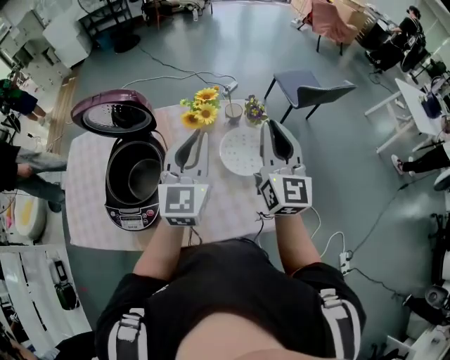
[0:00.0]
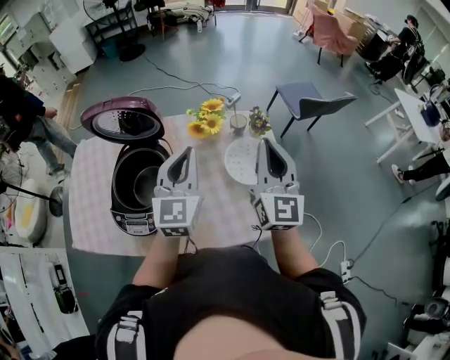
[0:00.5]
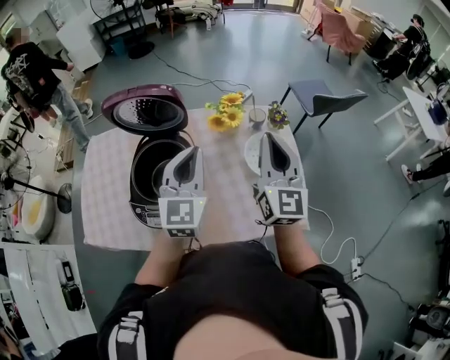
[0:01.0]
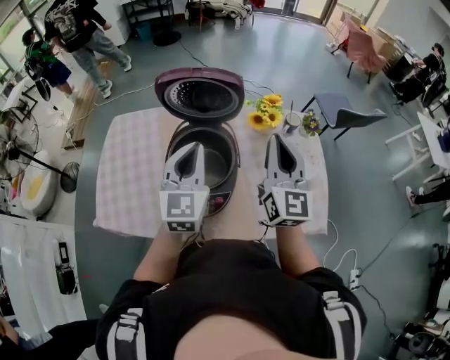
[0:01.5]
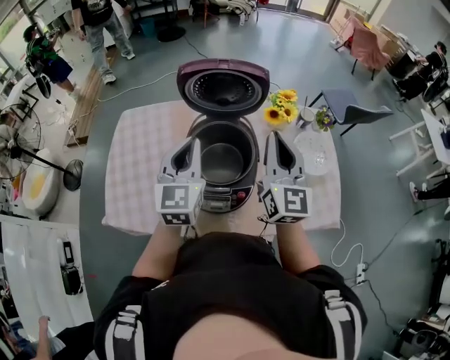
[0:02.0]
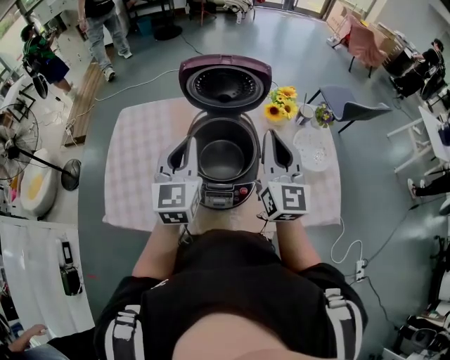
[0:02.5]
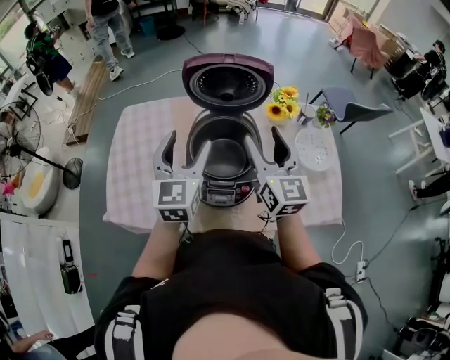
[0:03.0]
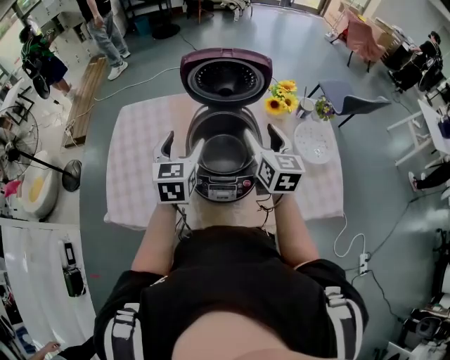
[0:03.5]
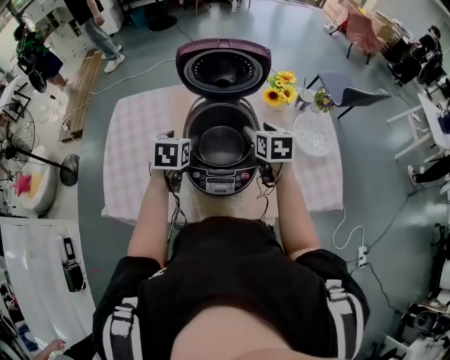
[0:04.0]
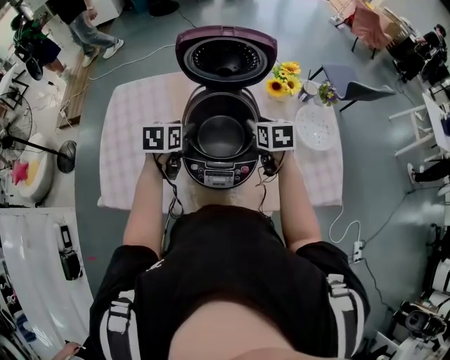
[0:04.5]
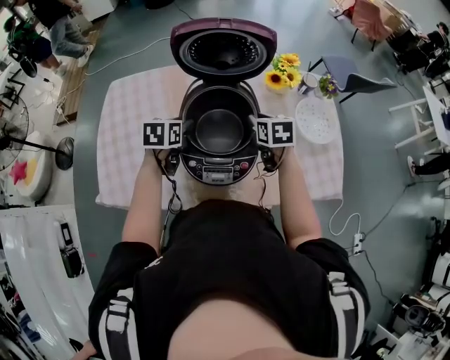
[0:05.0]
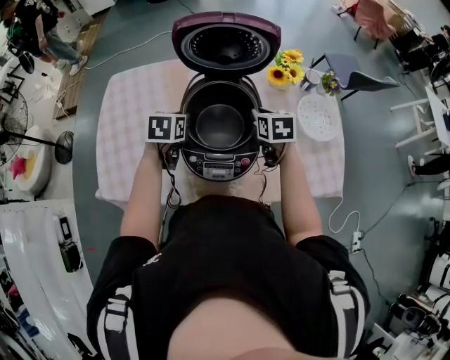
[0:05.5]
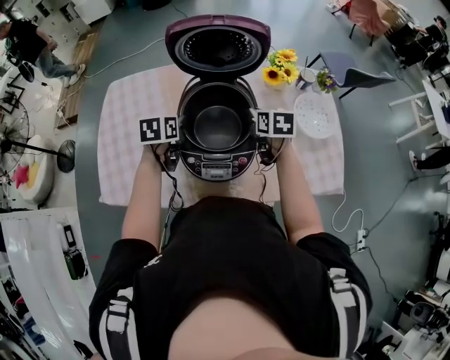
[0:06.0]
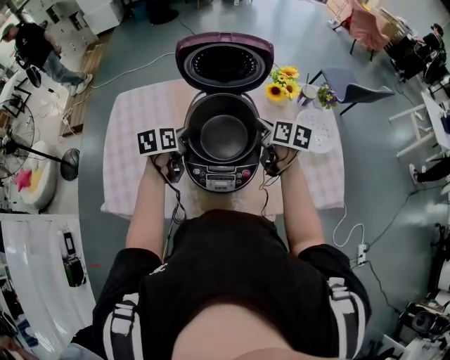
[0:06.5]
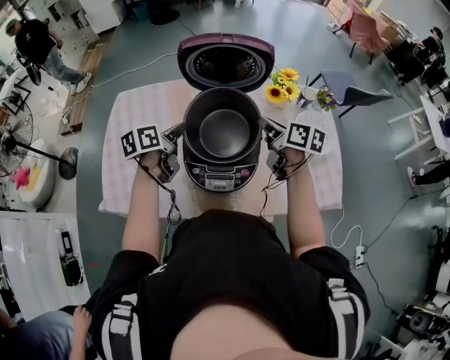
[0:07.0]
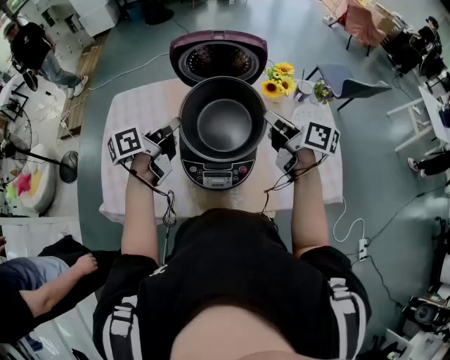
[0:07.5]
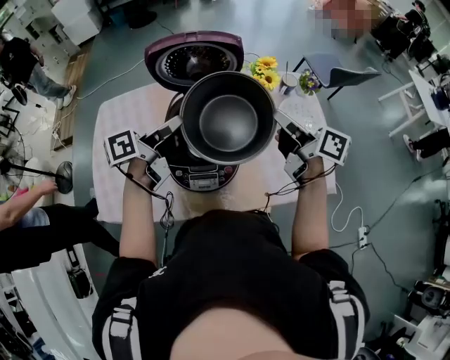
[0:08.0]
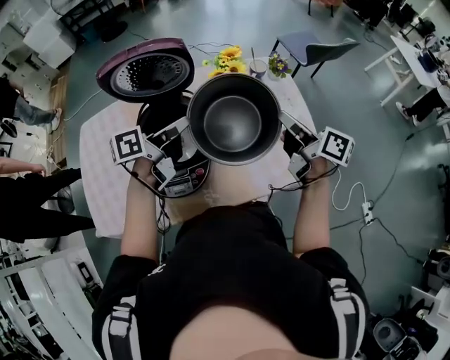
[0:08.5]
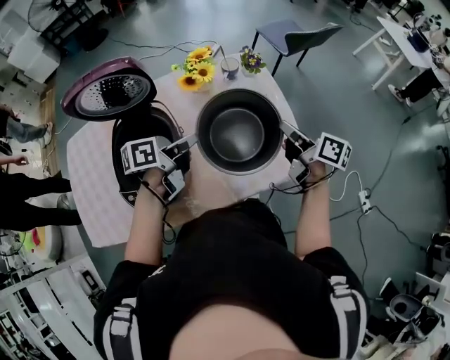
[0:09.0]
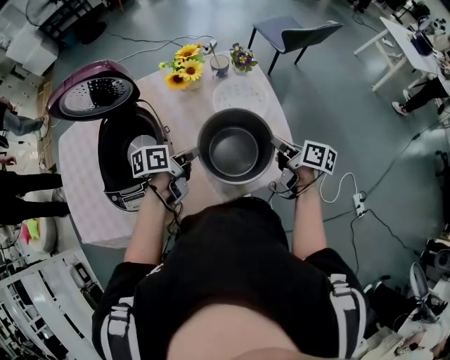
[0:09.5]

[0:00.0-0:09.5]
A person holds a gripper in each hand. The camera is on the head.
0:00.0 to 0:02.0: Both grippers move to the left, some 35 cm.
0:02.0 to 0:04.0: Both grippers travel together downward, roughly 15 cm. The left gripper tips its fingers downward by roughly 40 degrees, and opens up. The right gripper tilts its fingers roughly 50 degrees downward, and opens its fingers.
0:04.0 to 0:05.5: The two grippers go some 5 cm downward. The left gripper closes. The right gripper closes up.
0:05.5 to 0:07.5: The grippers both shift upward by roughly 15 cm. The left gripper points its fingers roughly 40 degrees further upward, while the right gripper tilts its fingers some 30 degrees upward.
0:07.5 to 0:09.5: The right gripper heads to the right and downward, covering about 40 cm, and changes its angle by roughly 30 degrees, while the left gripper heads to the right, covering roughly 35 cm, and changes its angle by about 30 degrees.

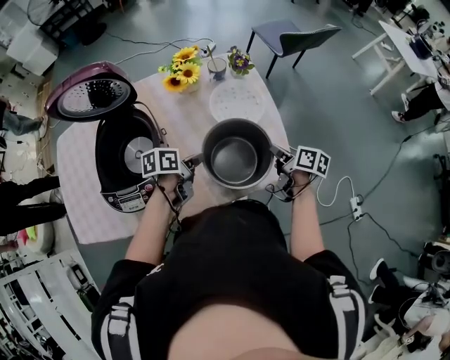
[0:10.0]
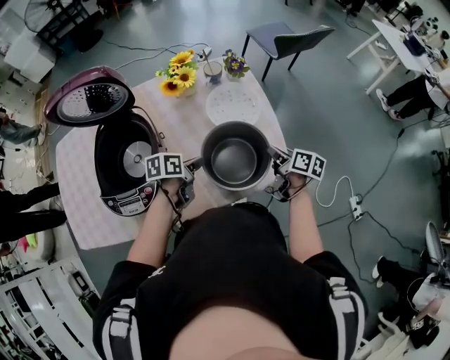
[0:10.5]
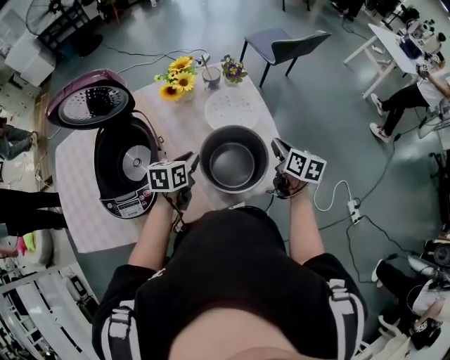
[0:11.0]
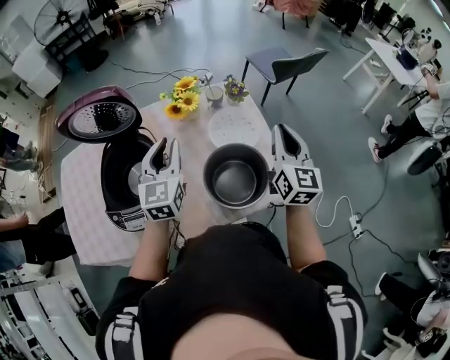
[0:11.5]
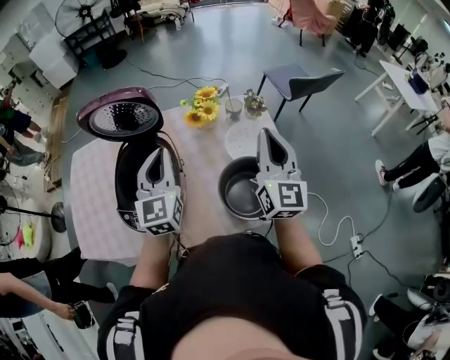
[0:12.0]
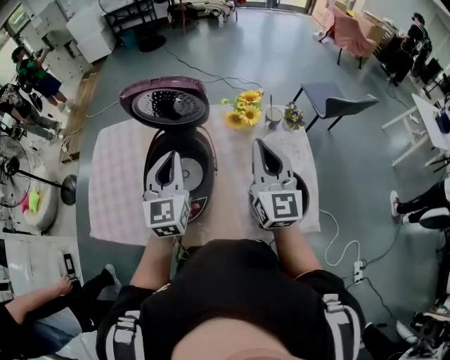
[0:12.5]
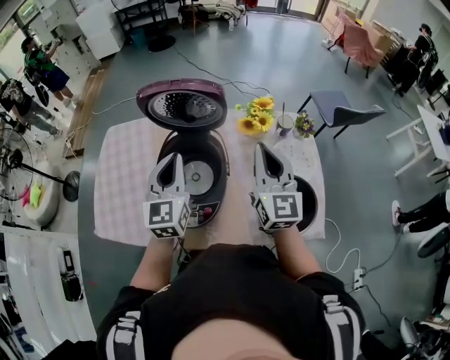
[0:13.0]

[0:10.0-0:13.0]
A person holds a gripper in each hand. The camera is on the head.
0:10.0 to 0:11.5: Both grippers travel together upward, approximately 20 cm. The left gripper rotates approximately 70 degrees, while the right gripper tilts its fingers approximately 30 degrees upward.
0:11.5 to 0:13.0: The grippers both shift to the left by approximately 25 cm. The right gripper rotates approximately 20 degrees.

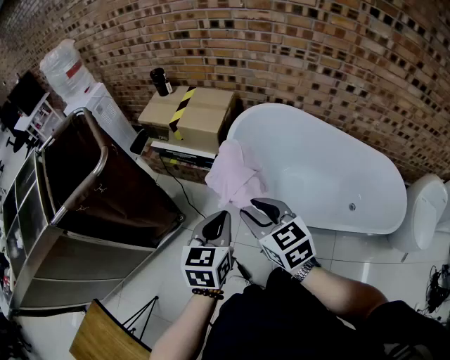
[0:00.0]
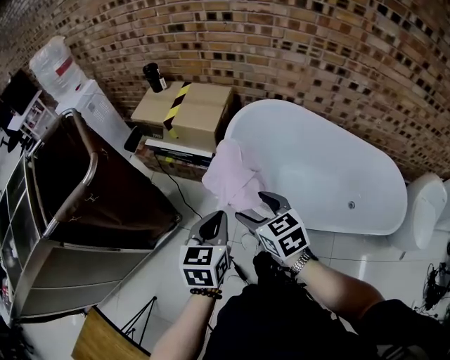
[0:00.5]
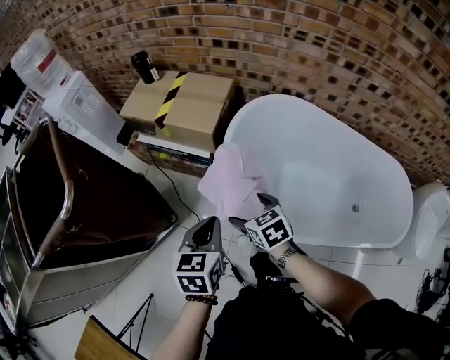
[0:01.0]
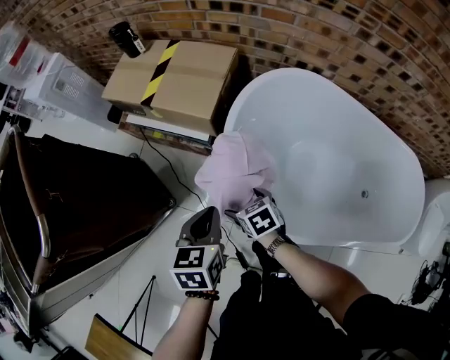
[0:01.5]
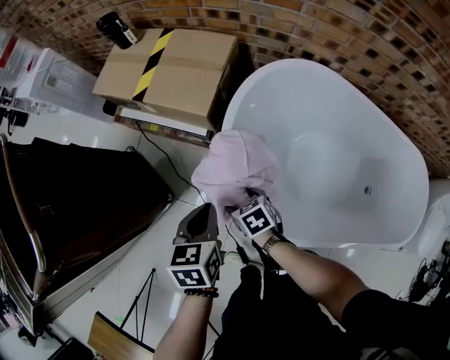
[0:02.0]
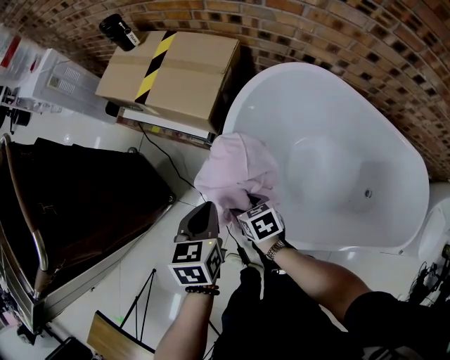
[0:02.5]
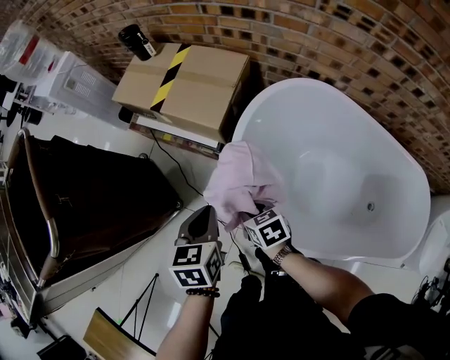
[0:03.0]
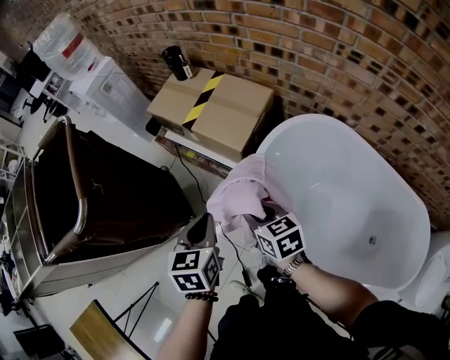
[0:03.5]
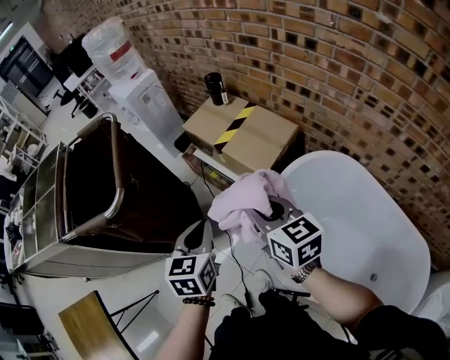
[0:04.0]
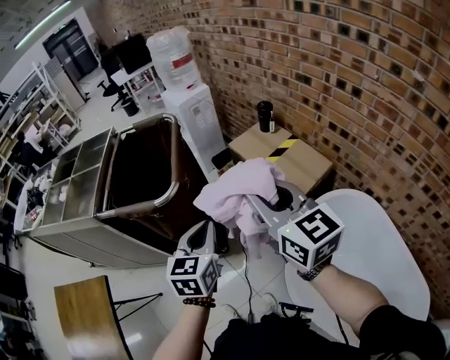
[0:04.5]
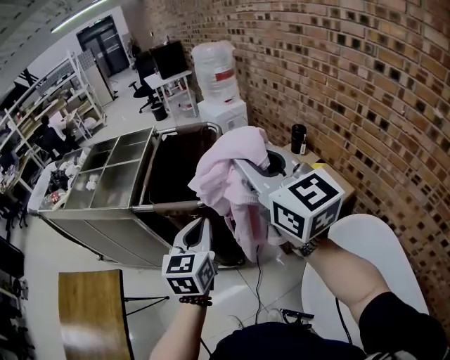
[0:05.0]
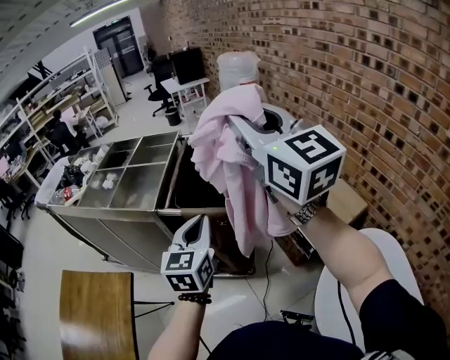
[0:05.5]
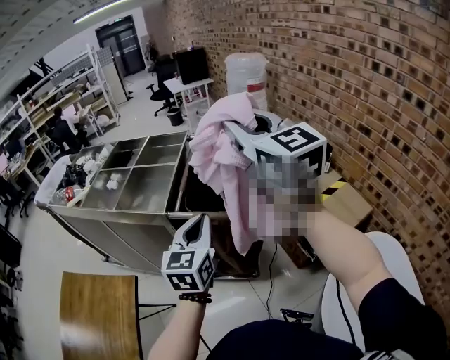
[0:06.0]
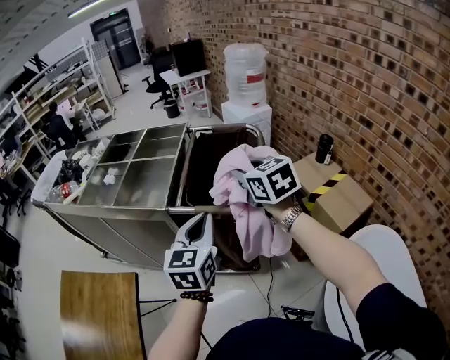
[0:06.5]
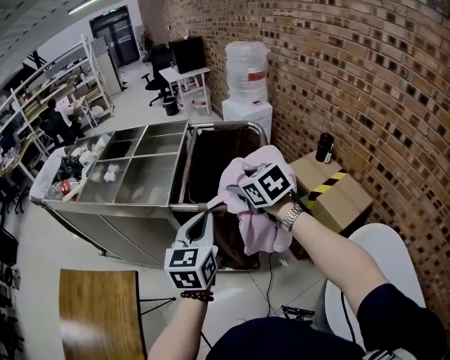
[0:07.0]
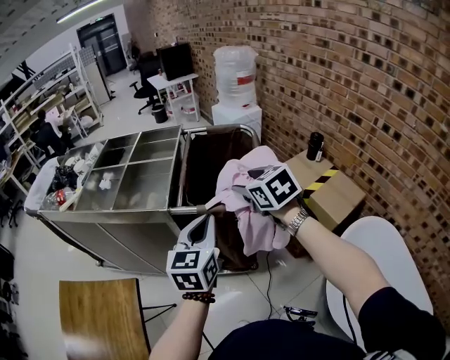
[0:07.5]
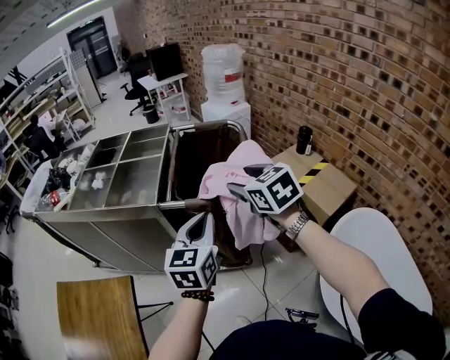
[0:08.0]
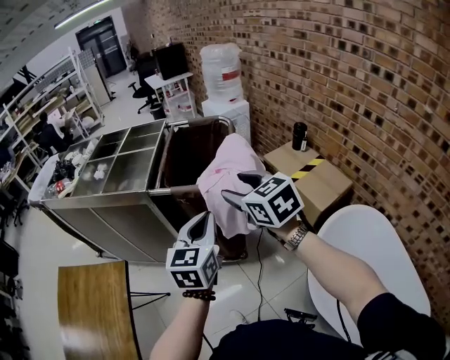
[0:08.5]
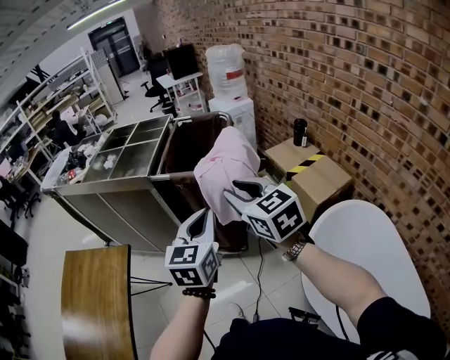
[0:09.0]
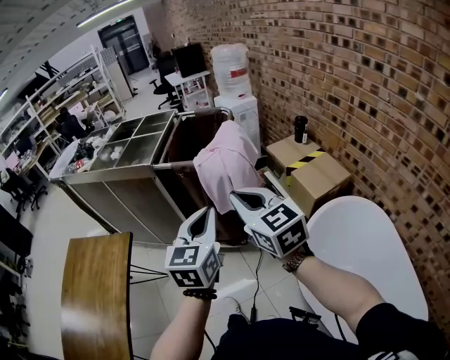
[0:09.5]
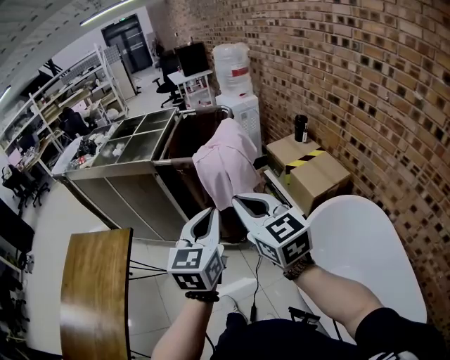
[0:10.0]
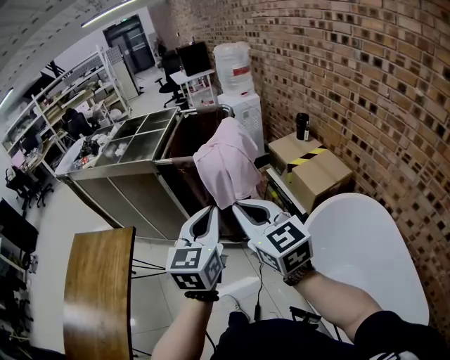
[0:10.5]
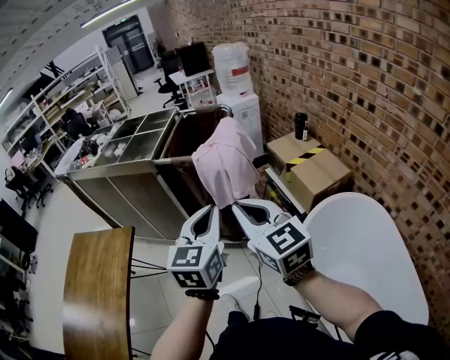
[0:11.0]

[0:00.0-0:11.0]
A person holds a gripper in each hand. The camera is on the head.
0:00.0 to 0:02.0: The left gripper is displaced forward and downward by about 50 cm, and changes its angle by approximately 20 degrees; the right gripper moves downward and forward, approximately 60 cm, tips its fingers downward by about 40 degrees, and opens.
0:02.0 to 0:03.5: The left gripper moves upward, some 15 cm, while the right gripper goes some 30 cm upward, swivels some 30 degrees, and closes.
0:03.5 to 0:05.5: The right gripper heads upward, covering roughly 70 cm, and tips its fingers upward by about 40 degrees; the left gripper changes place by approximately 50 cm, and rotates approximately 40 degrees.
0:05.5 to 0:07.5: The right gripper goes roughly 35 cm downward and forward, points its fingers about 50 degrees further downward, and opens its fingers. The left gripper heads to the left, covering about 5 cm.
0:07.5 to 0:09.0: The right gripper moves backward, about 25 cm, and rotates about 20 degrees, while the left gripper moves backward and to the right, approximately 20 cm.
0:09.0 to 0:11.0: Both grippers move backward, approximately 15 cm.

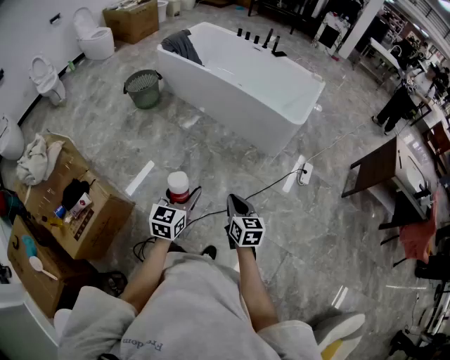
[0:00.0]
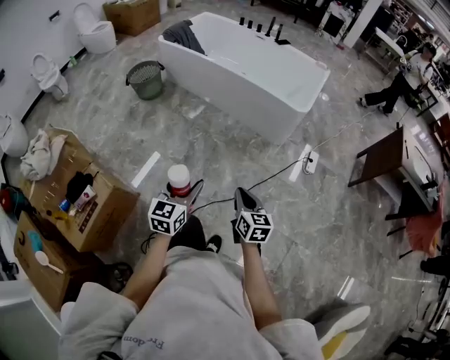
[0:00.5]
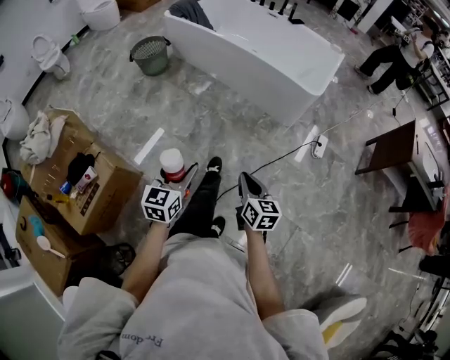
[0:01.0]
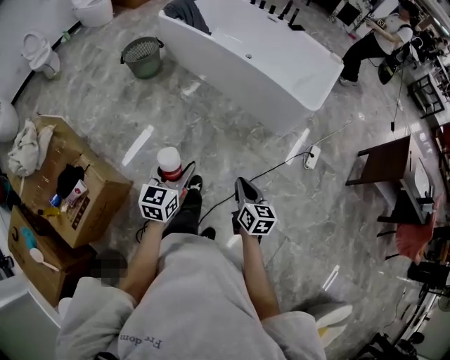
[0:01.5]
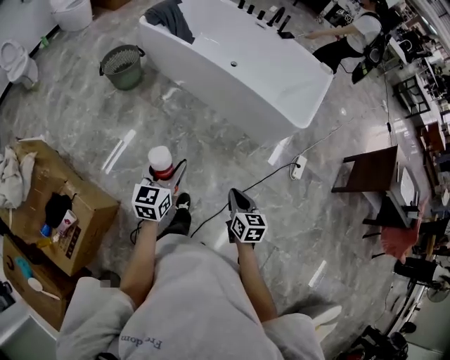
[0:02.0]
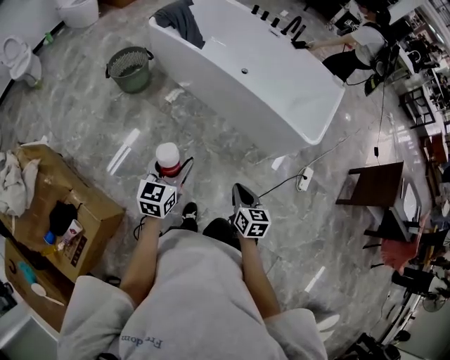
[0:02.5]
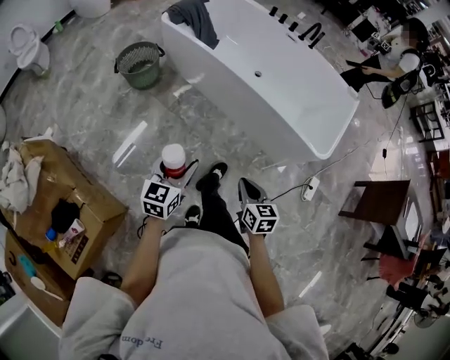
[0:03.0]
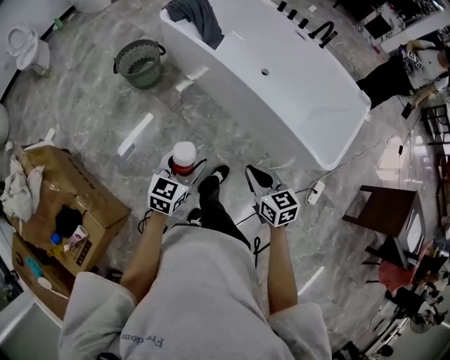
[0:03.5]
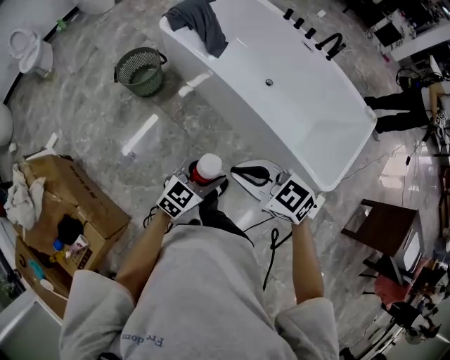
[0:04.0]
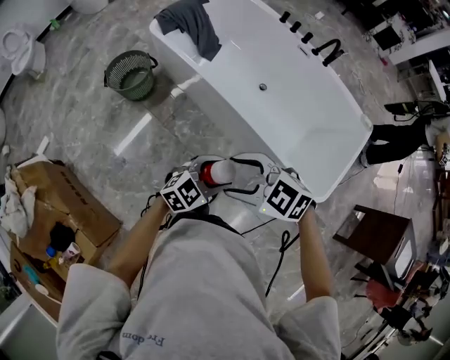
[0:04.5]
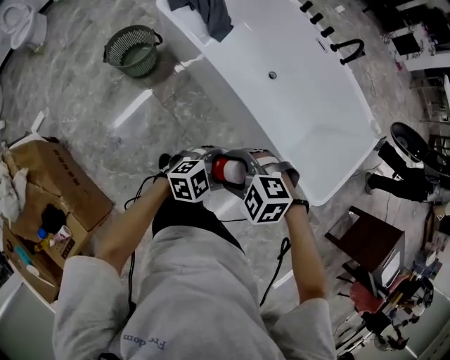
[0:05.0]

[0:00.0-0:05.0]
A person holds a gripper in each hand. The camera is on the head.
0:00.0 to 0:02.5: The grippers both shift forward by about 30 cm.
0:02.5 to 0:05.0: The right gripper moves some 15 cm upward and comes back, turns by approximately 100 degrees, and opens up. Meanwhile the left gripper changes place by some 35 cm, and turns by roughly 60 degrees.
